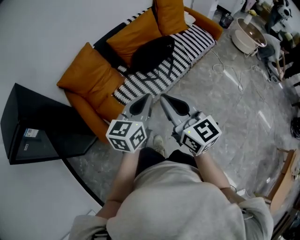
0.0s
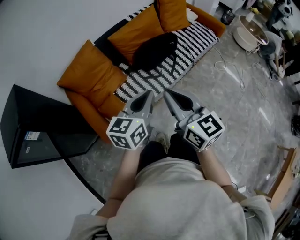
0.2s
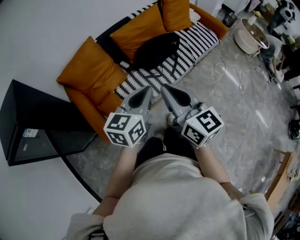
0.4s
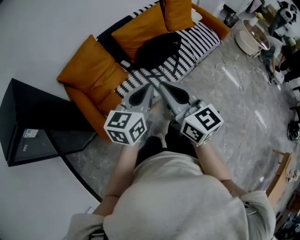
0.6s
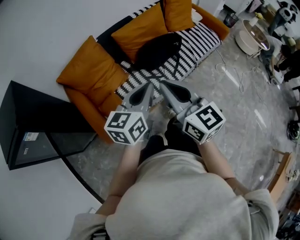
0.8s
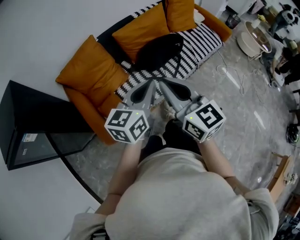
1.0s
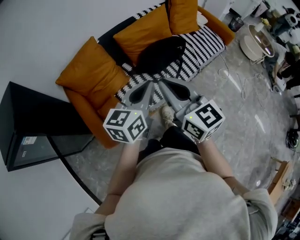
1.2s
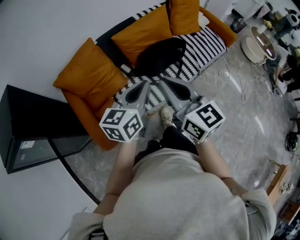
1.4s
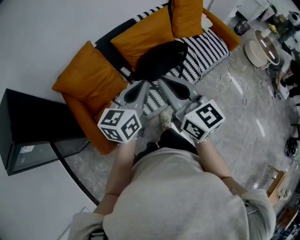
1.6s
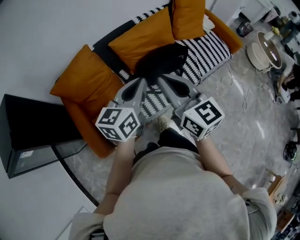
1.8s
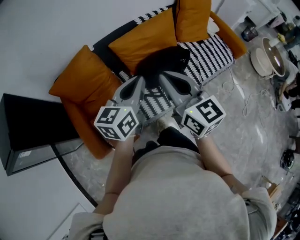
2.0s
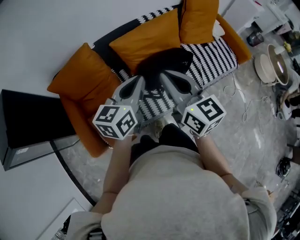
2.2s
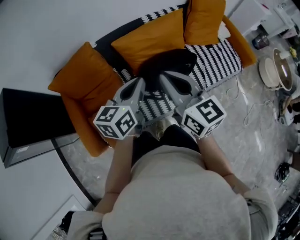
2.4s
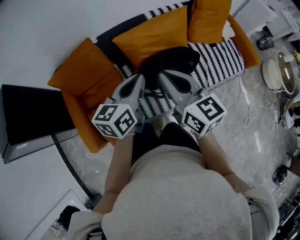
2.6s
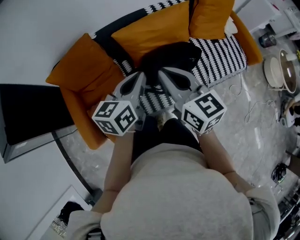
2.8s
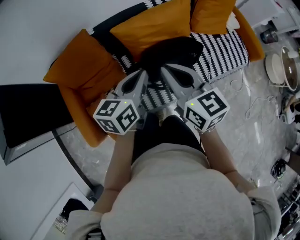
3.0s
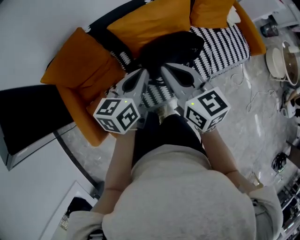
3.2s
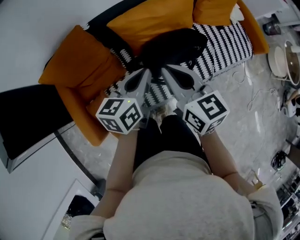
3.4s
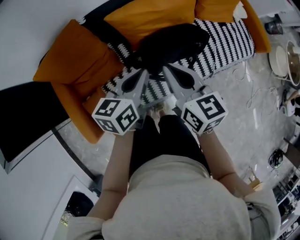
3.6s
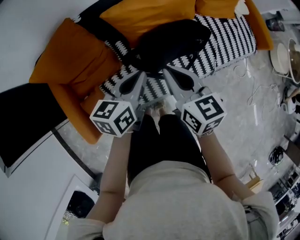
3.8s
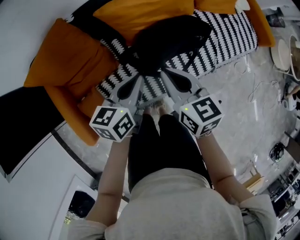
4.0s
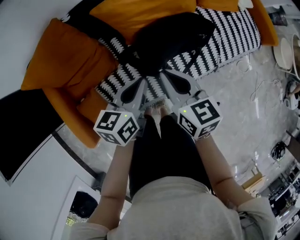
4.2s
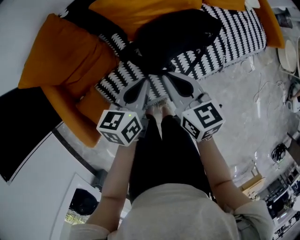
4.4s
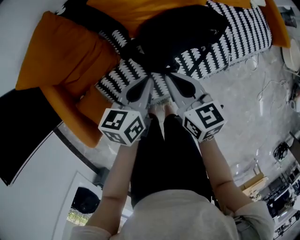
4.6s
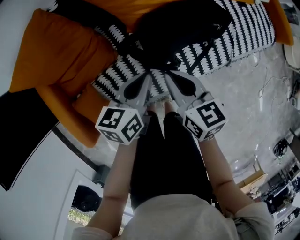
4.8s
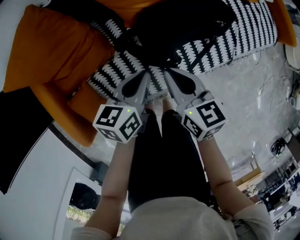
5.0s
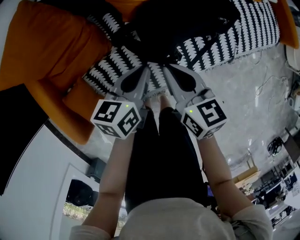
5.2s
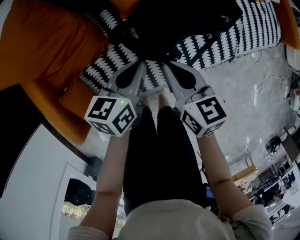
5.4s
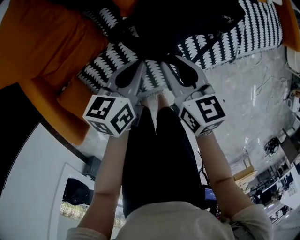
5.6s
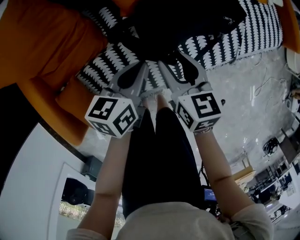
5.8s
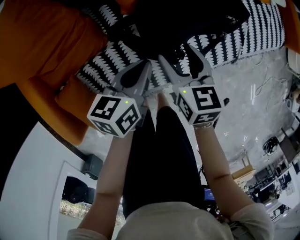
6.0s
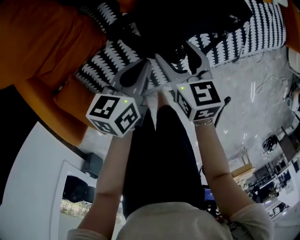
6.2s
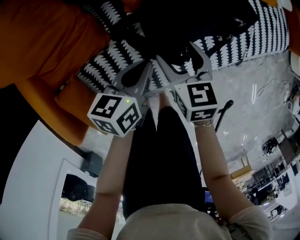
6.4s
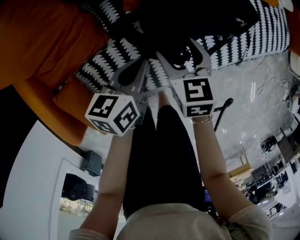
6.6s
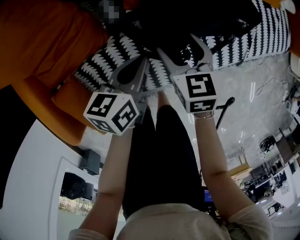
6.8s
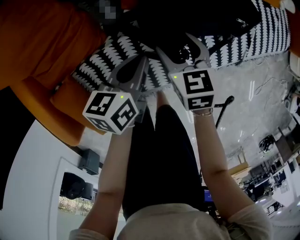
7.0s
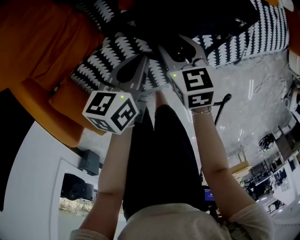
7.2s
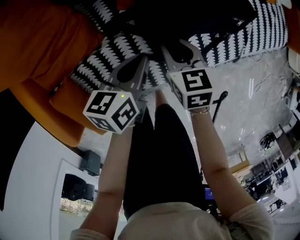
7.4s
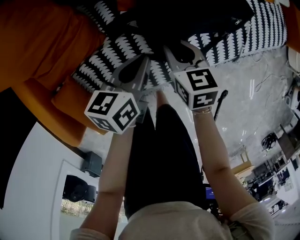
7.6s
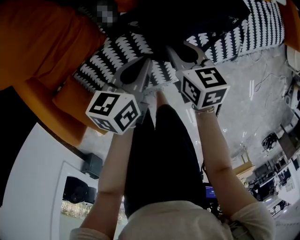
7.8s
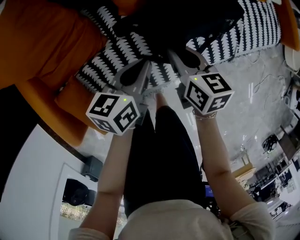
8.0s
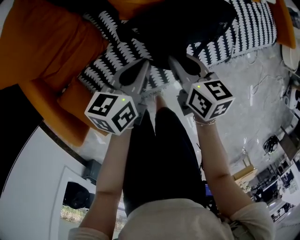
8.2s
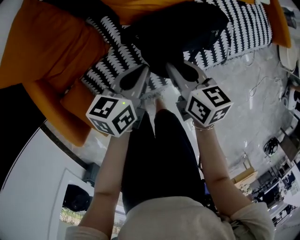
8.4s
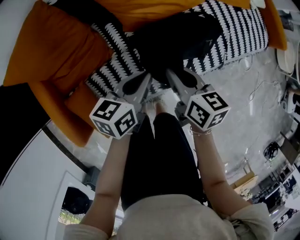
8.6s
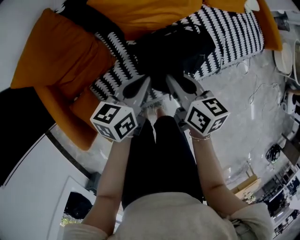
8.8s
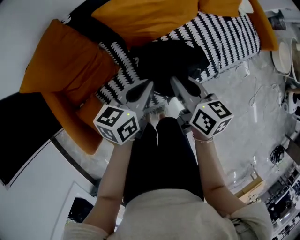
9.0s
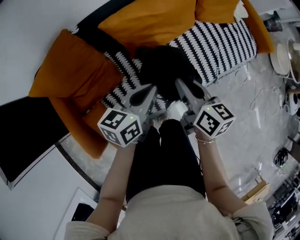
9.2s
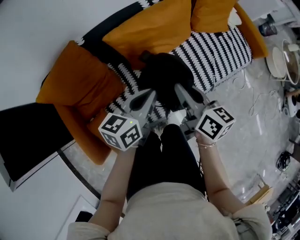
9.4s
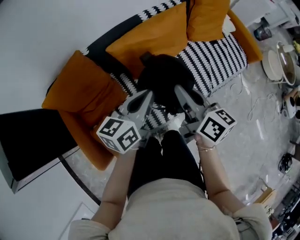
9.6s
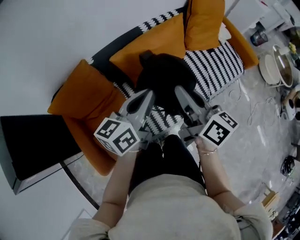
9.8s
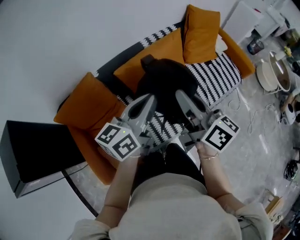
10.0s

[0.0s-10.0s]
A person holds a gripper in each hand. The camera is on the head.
0.0s to 1.4s: The grippers both shift forward by roughly 20 cm.
1.4s to 2.8s: The two grippers go about 20 cm forward.
2.8s to 4.2s: Both grippers travel together downward, roughly 20 cm.
4.2s to 5.8s: The two grippers go about 20 cm downward. The right gripper opens up.
5.8s to 7.2s: The right gripper is displaced downward by approximately 10 cm, and opens and closes again.
7.2s to 8.6s: Both grippers move upward, some 15 cm. The right gripper changes its angle by approximately 30 degrees, and closes.
8.6s to 10.0s: The two grippers go about 35 cm upward. The right gripper points its fingers approximately 30 degrees further upward. The left gripper rotates about 30 degrees.

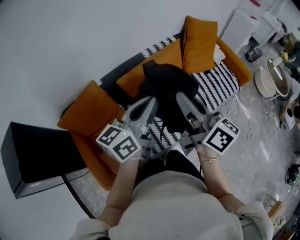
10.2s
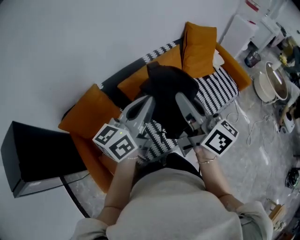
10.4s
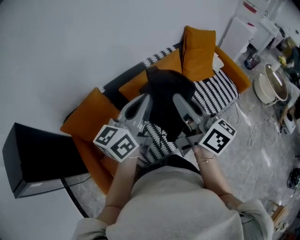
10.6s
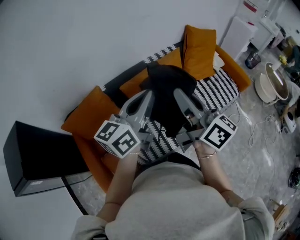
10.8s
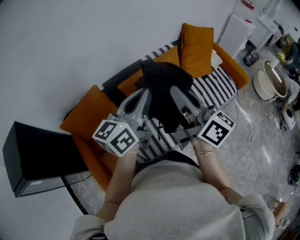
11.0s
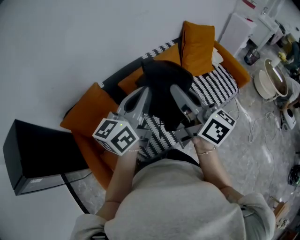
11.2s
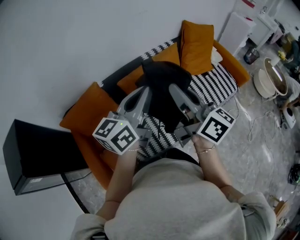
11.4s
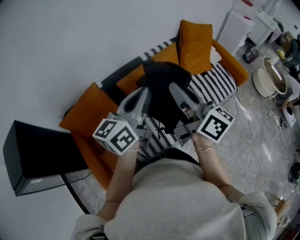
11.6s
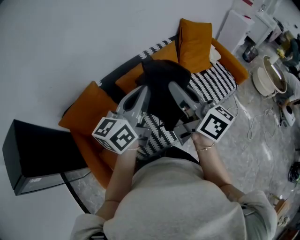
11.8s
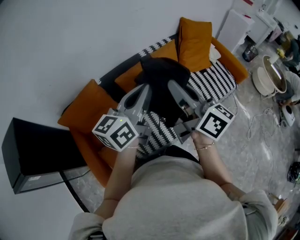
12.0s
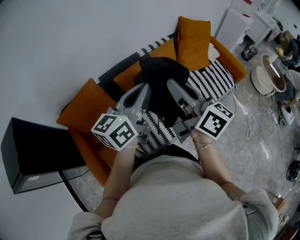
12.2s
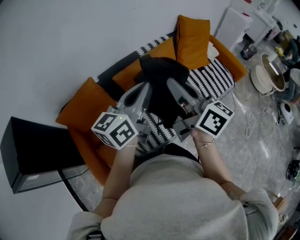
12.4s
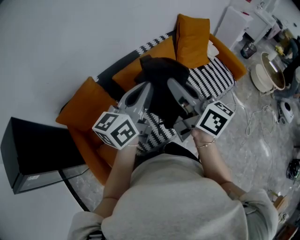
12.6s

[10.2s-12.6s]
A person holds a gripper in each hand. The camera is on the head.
10.2s to 12.6s: The grippers stay close to where they were, moving slightly.

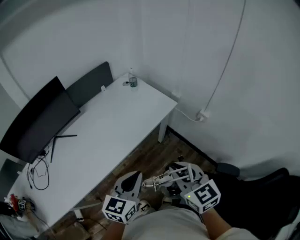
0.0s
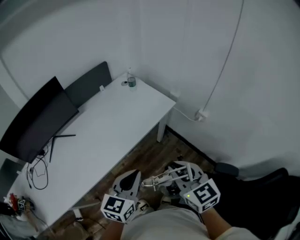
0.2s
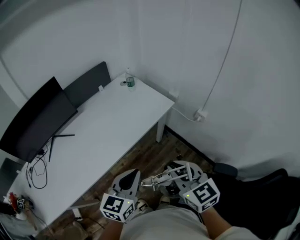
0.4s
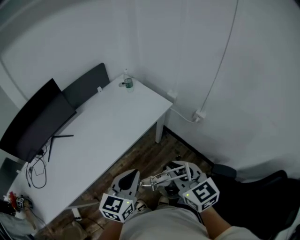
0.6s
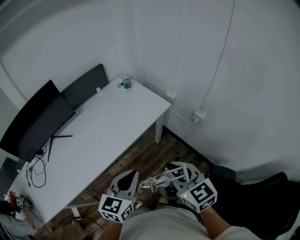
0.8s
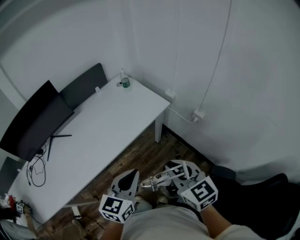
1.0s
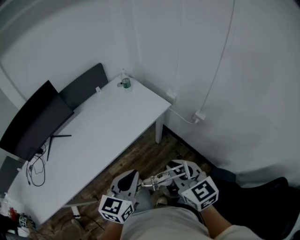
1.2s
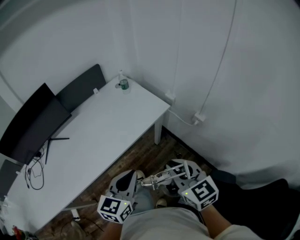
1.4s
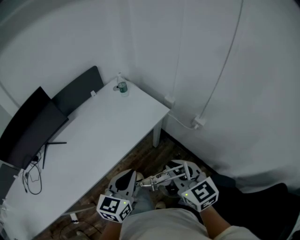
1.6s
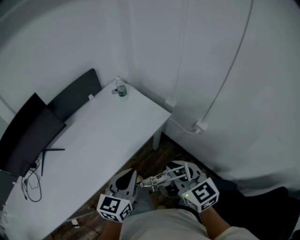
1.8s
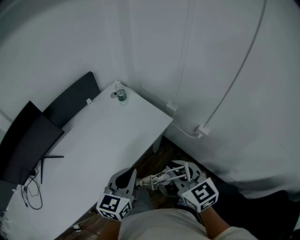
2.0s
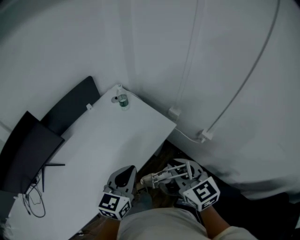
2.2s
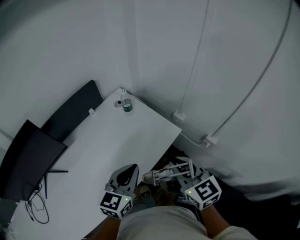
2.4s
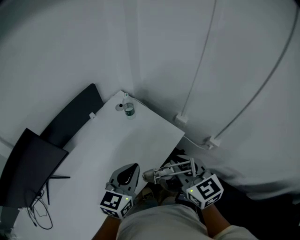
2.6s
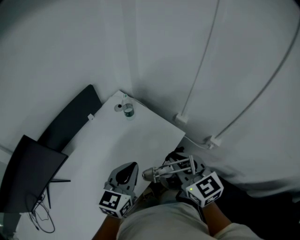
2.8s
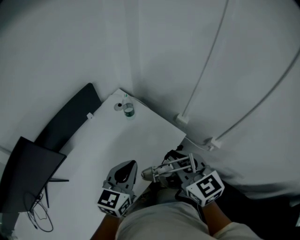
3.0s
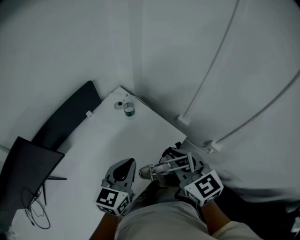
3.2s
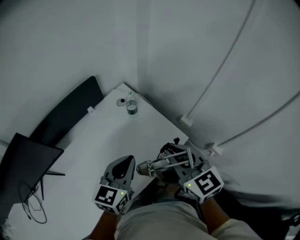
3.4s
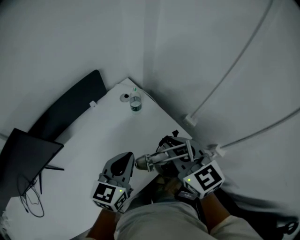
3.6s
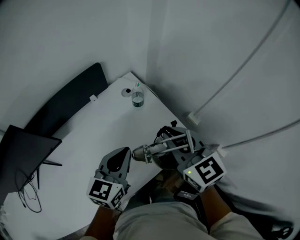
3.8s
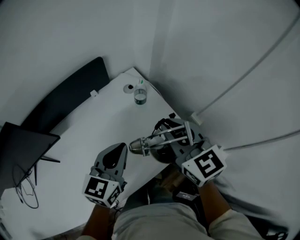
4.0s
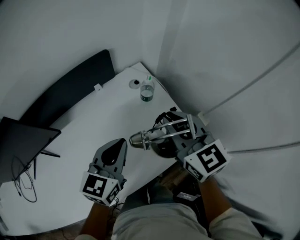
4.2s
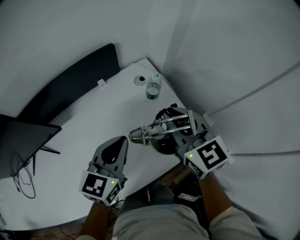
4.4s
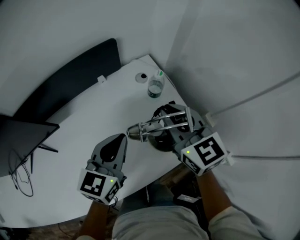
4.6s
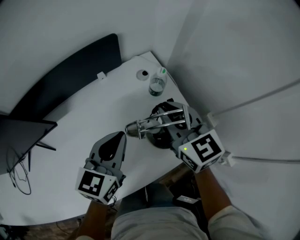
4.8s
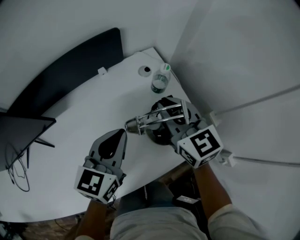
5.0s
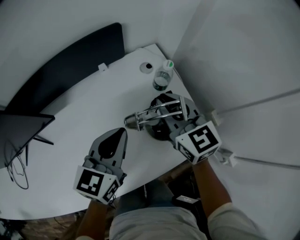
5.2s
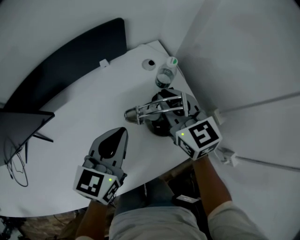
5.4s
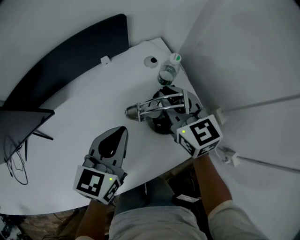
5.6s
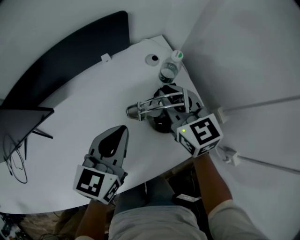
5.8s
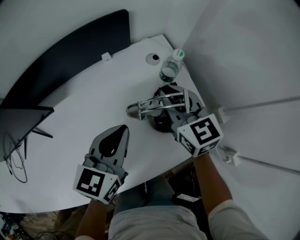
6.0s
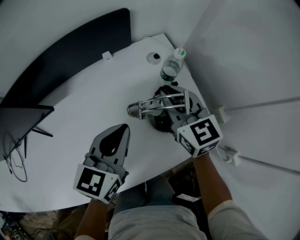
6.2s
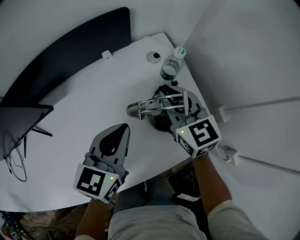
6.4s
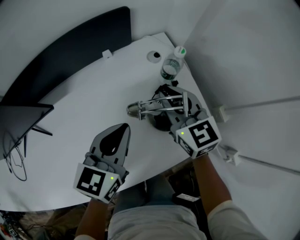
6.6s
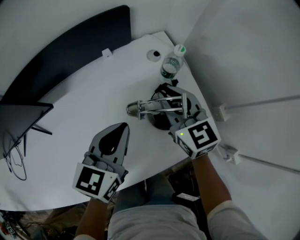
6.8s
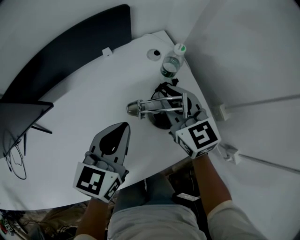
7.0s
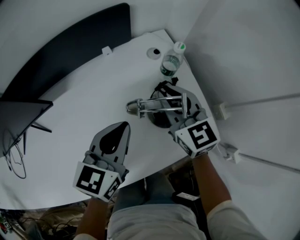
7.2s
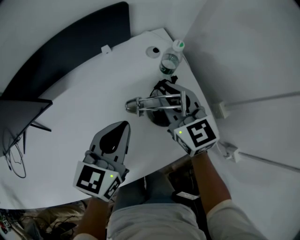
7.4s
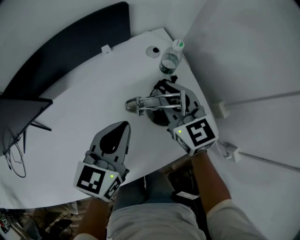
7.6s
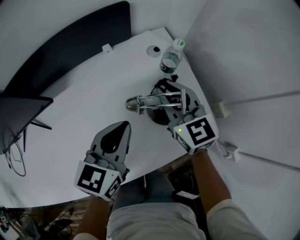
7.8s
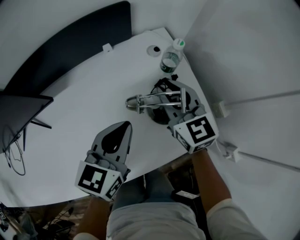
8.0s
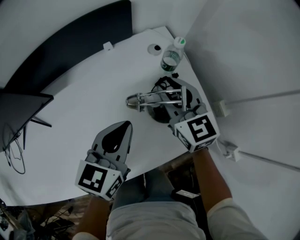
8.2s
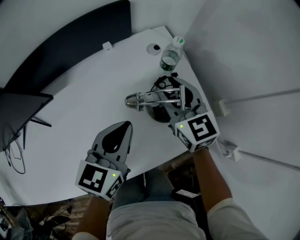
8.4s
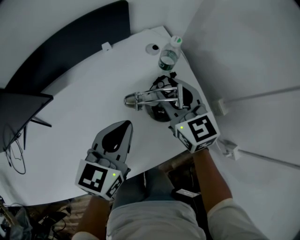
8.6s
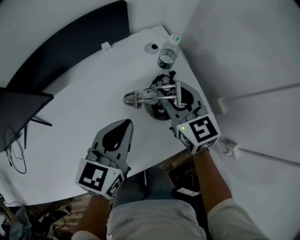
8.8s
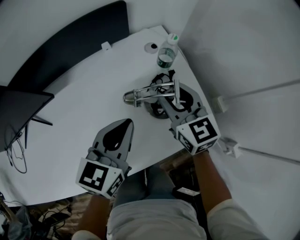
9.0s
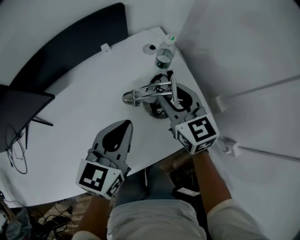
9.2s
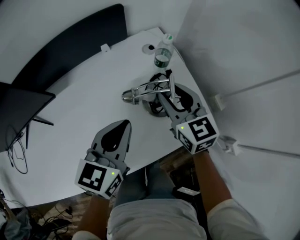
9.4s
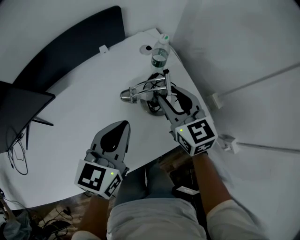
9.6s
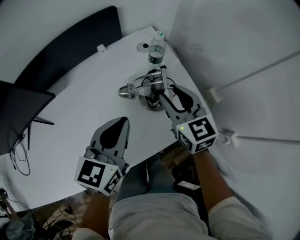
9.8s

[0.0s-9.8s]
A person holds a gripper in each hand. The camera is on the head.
0.0s to 1.4s: Both grippers move to the right, about 5 cm.
1.4s to 2.8s: The two grippers go some 30 cm forward.
2.8s to 4.2s: The left gripper heads forward, covering about 10 cm, while the right gripper moves forward, approximately 15 cm.
4.2s to 5.6s: The left gripper moves downward, about 5 cm. The right gripper travels downward, forward and to the left by approximately 15 cm.
5.6s to 7.0s: There are only small adjustments of the grippers.
7.0s to 8.4s: The right gripper opens its fingers.
8.4s to 9.8s: The left gripper ends up about 5 cm from where it was. Meanwhile the right gripper shifts about 5 cm backward.

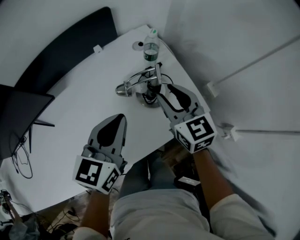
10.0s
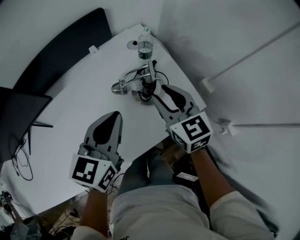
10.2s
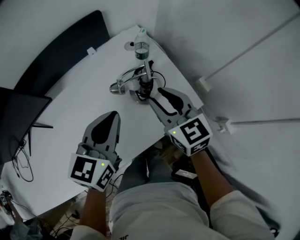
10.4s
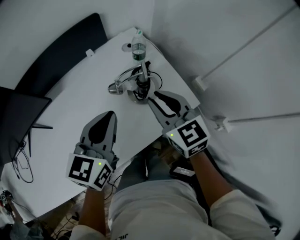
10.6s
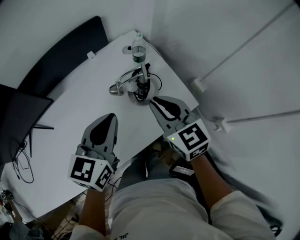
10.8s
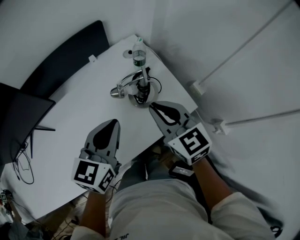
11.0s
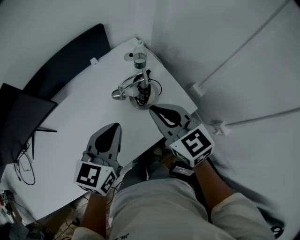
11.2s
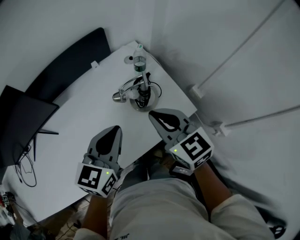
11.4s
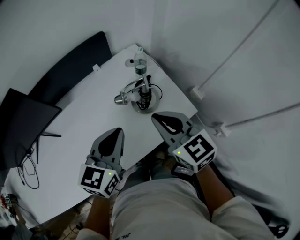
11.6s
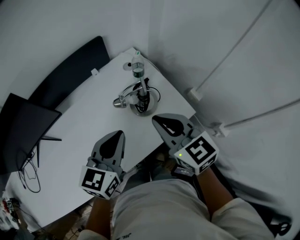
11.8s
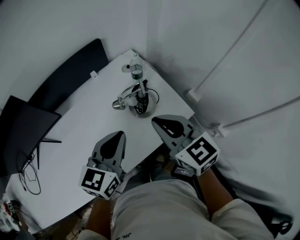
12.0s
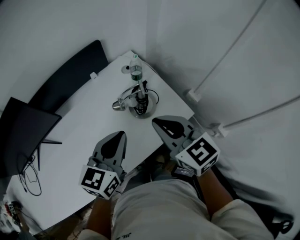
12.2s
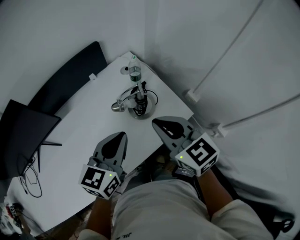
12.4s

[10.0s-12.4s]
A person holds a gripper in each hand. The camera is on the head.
10.0s to 11.2s: The right gripper shifts roughly 10 cm backward and upward, and closes, while the left gripper shifts by roughly 5 cm.
11.2s to 12.4s: There are only small adjustments of the grippers.
